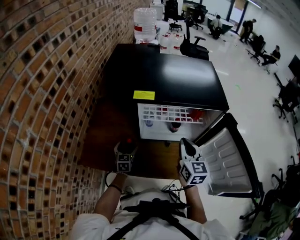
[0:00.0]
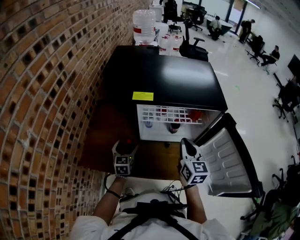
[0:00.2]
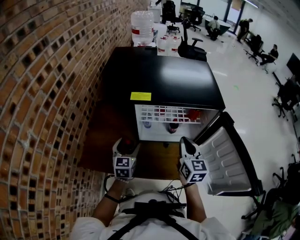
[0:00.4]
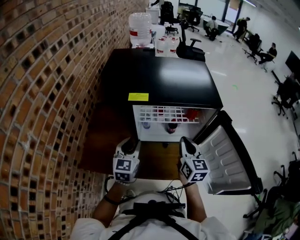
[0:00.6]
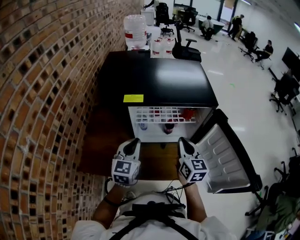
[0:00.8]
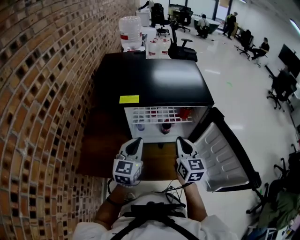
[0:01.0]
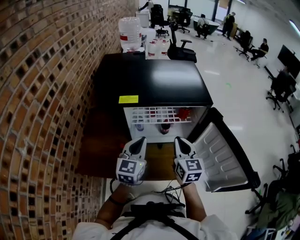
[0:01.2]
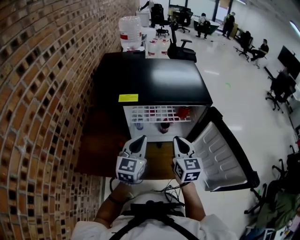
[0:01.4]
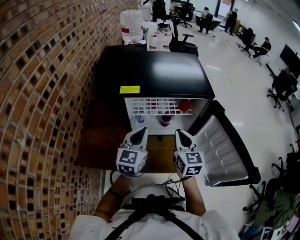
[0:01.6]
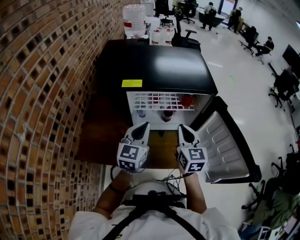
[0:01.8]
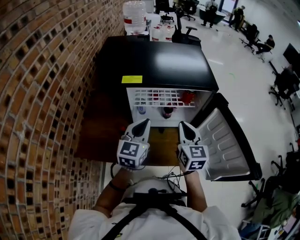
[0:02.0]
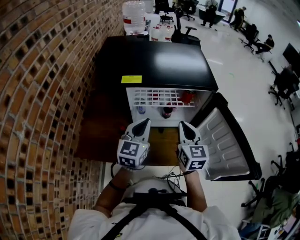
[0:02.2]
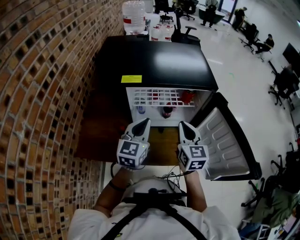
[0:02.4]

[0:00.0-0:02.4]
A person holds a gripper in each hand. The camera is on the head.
0:00.0 to 0:01.2: The left gripper travels upward and to the right by approximately 30 cm, swivels some 30 degrees, and closes up.
0:01.2 to 0:02.4: Both grippers stay put.

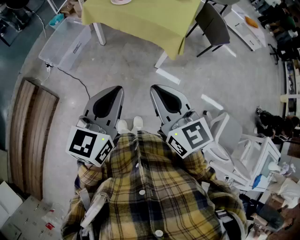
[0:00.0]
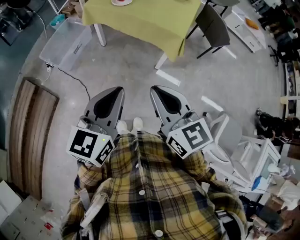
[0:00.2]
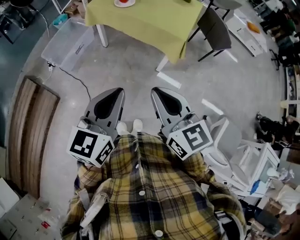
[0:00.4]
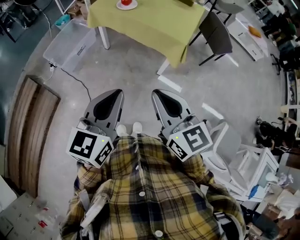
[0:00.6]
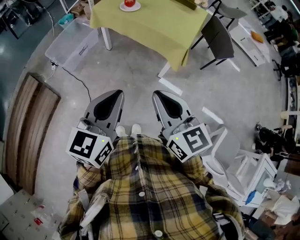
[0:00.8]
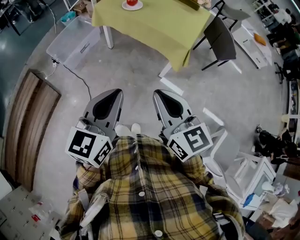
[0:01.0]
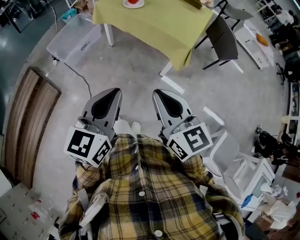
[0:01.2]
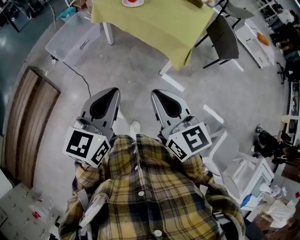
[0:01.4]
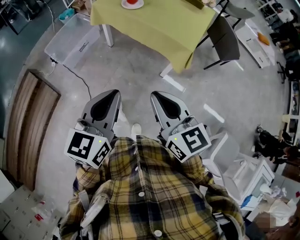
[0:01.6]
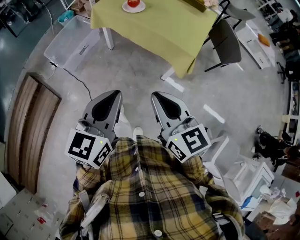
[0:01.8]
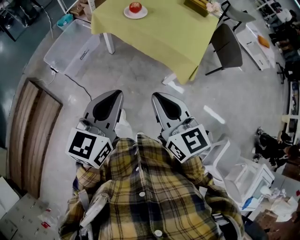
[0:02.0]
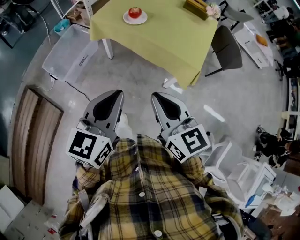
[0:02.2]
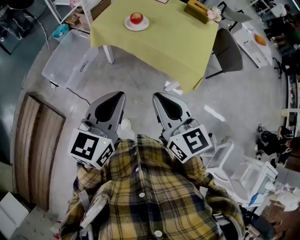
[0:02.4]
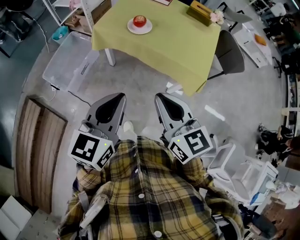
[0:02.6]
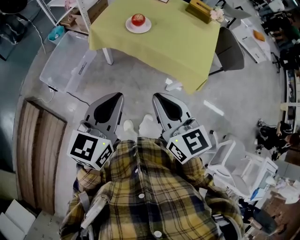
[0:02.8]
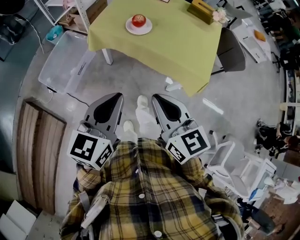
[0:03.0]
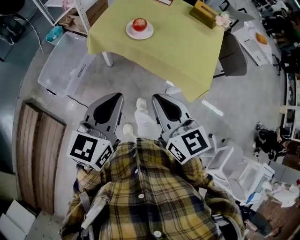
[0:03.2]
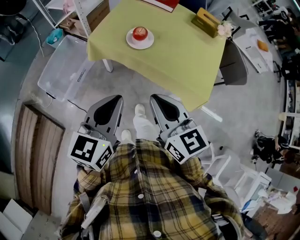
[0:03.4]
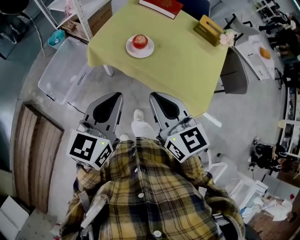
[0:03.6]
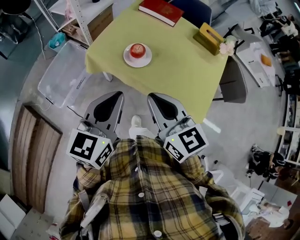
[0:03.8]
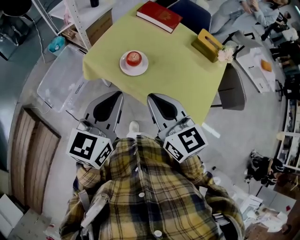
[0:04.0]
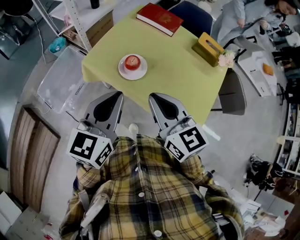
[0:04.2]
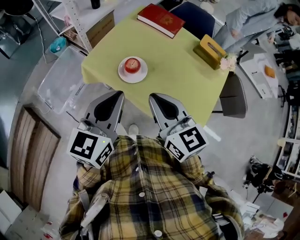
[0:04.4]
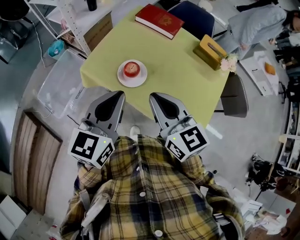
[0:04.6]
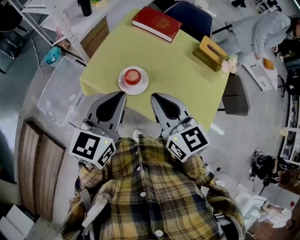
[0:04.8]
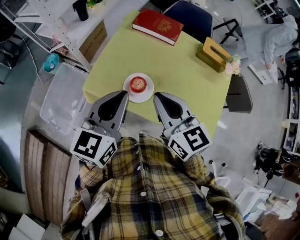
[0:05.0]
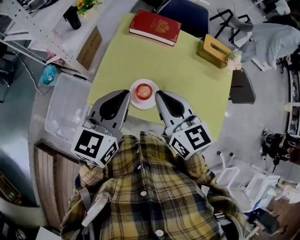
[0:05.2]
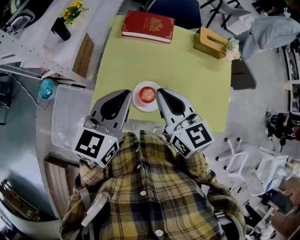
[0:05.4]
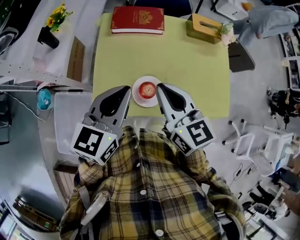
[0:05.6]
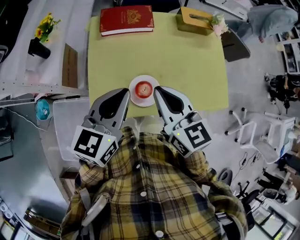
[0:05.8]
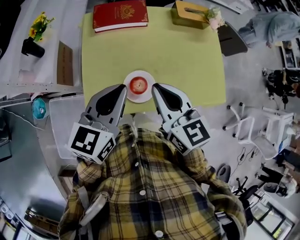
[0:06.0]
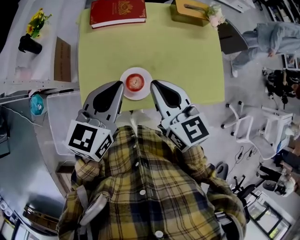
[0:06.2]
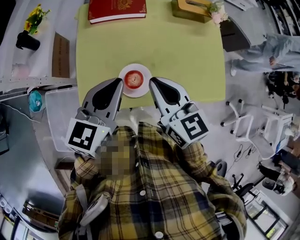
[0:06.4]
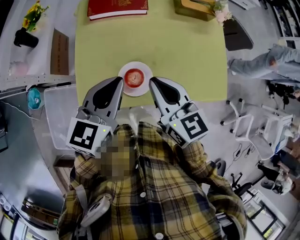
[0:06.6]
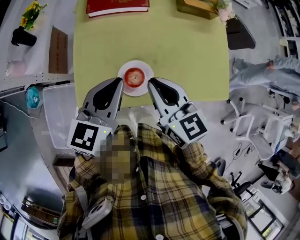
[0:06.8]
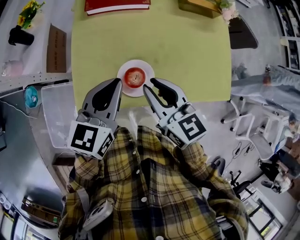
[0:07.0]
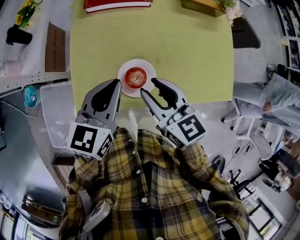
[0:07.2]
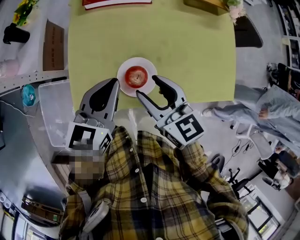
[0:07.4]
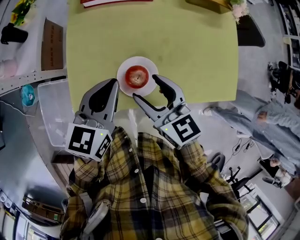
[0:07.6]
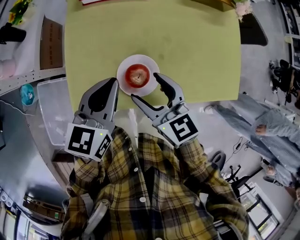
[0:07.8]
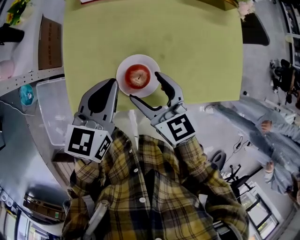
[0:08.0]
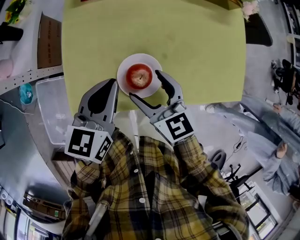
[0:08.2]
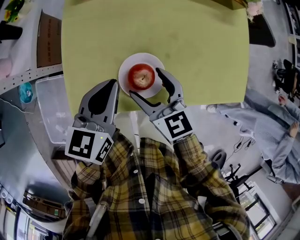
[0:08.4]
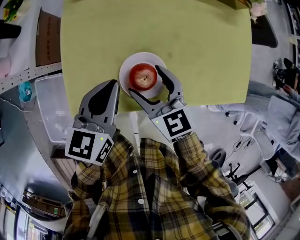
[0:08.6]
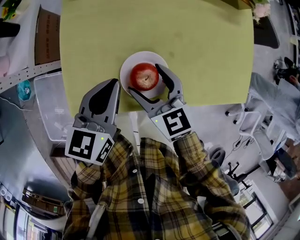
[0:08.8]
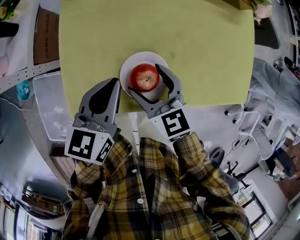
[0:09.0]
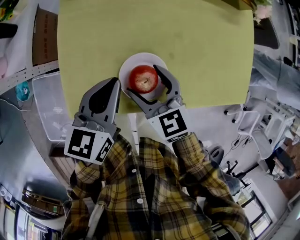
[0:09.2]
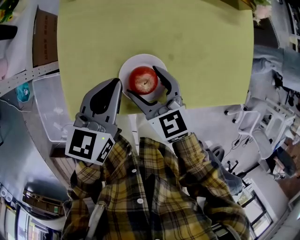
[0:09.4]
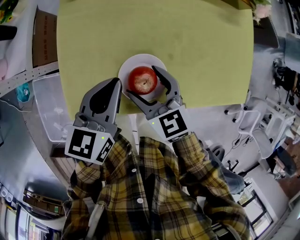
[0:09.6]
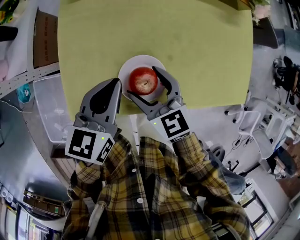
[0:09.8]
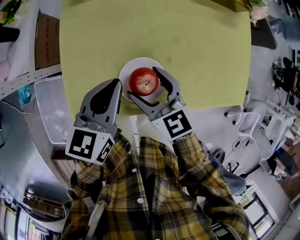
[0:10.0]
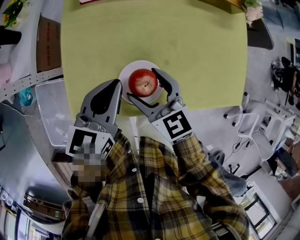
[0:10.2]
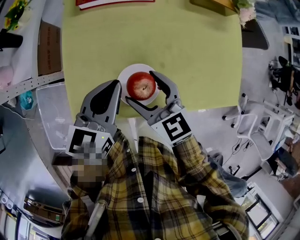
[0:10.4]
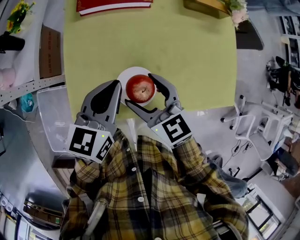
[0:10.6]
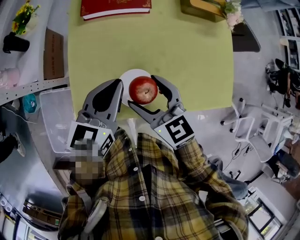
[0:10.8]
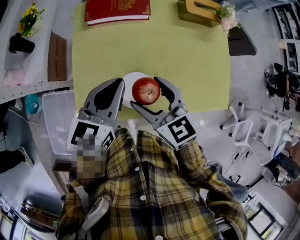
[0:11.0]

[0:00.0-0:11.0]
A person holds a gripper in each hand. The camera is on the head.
0:00.0 to 0:01.6: The two grippers go about 5 cm forward.
0:01.6 to 0:03.2: Both grippers travel together forward and to the left, approximately 30 cm.
0:03.2 to 0:04.8: Both grippers move forward, approximately 25 cm.
0:04.8 to 0:06.2: The right gripper moves roughly 10 cm, and swivels some 30 degrees. The left gripper shifts by roughly 15 cm, and rotates some 40 degrees.
0:06.2 to 0:07.8: Both grippers travel together downward, roughly 15 cm. The right gripper opens.
0:07.8 to 0:09.4: The left gripper heads downward, covering roughly 5 cm, while the right gripper heads downward, covering some 10 cm.
0:09.4 to 0:11.0: The grippers both shift upward by roughly 10 cm.

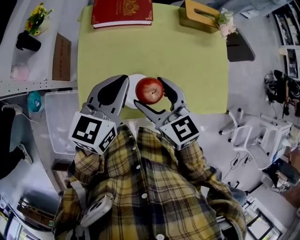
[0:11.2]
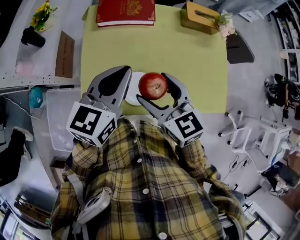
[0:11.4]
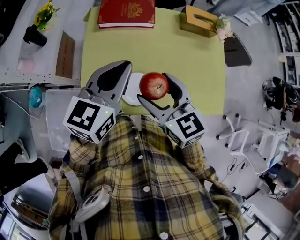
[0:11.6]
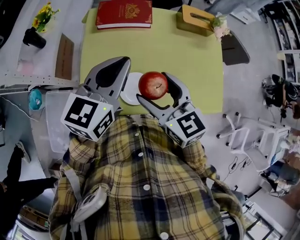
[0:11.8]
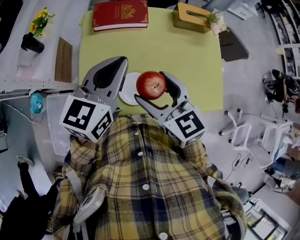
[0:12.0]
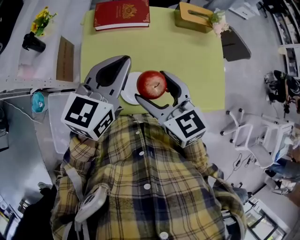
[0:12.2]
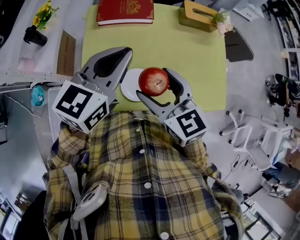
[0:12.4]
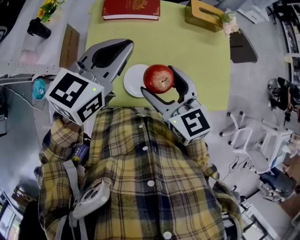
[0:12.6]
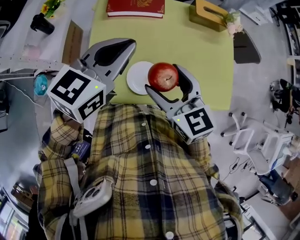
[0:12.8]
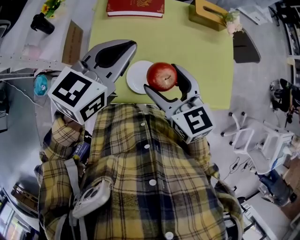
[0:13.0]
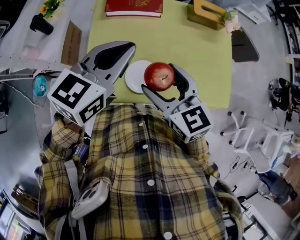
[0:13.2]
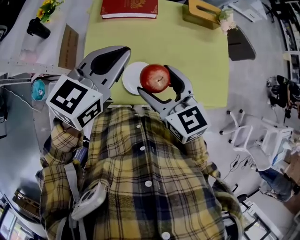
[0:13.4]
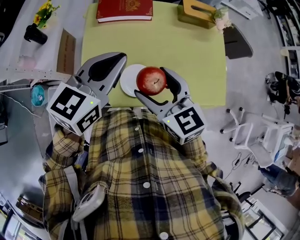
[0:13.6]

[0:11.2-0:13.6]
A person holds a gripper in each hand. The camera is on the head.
0:11.2 to 0:12.4: Both grippers move upward, about 5 cm.
0:12.4 to 0:13.6: The grippers move only a little.

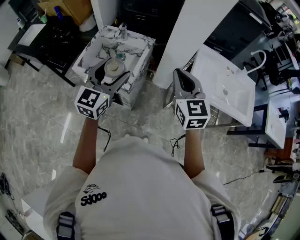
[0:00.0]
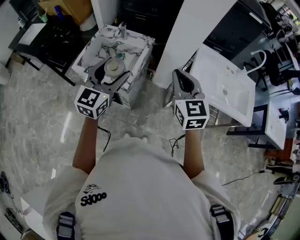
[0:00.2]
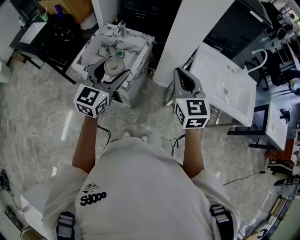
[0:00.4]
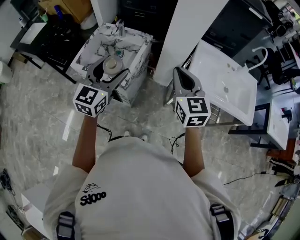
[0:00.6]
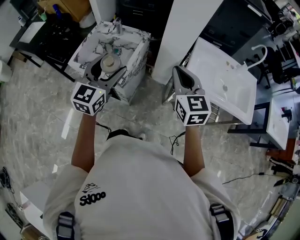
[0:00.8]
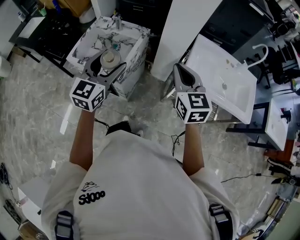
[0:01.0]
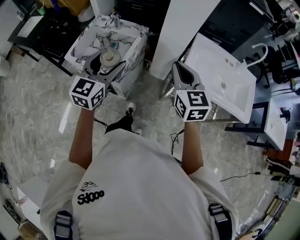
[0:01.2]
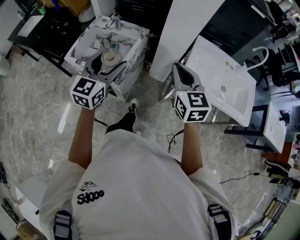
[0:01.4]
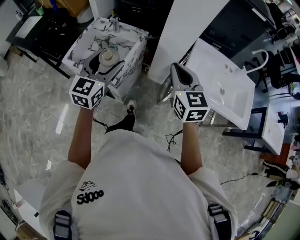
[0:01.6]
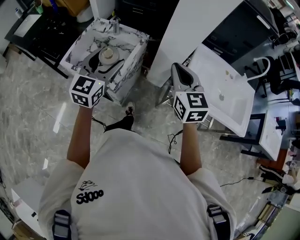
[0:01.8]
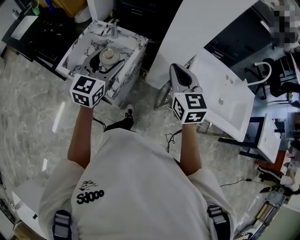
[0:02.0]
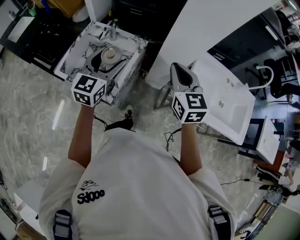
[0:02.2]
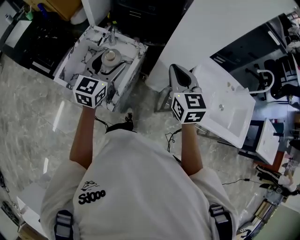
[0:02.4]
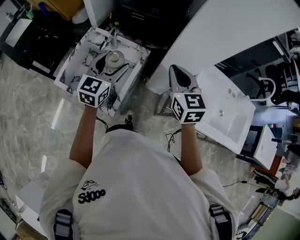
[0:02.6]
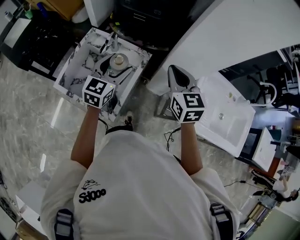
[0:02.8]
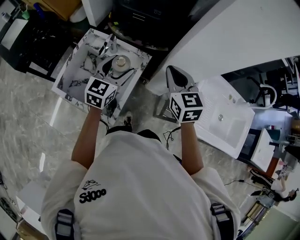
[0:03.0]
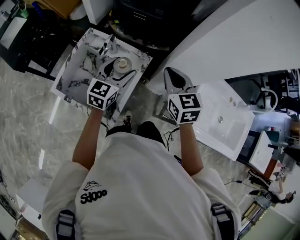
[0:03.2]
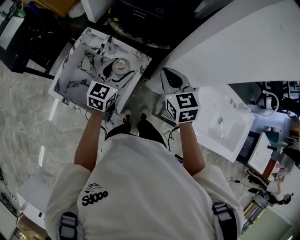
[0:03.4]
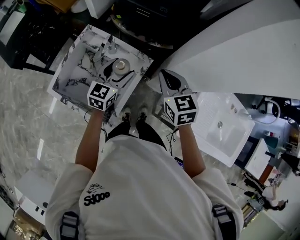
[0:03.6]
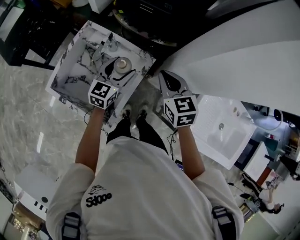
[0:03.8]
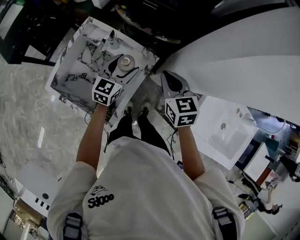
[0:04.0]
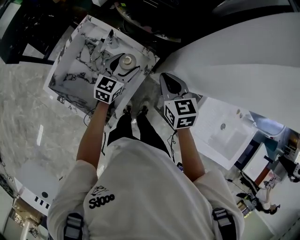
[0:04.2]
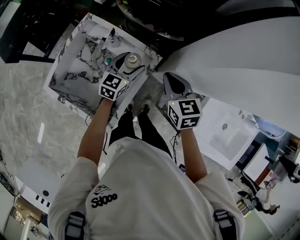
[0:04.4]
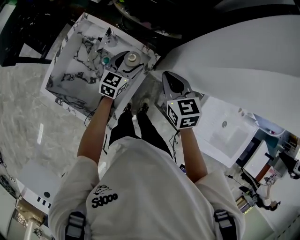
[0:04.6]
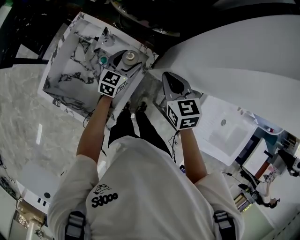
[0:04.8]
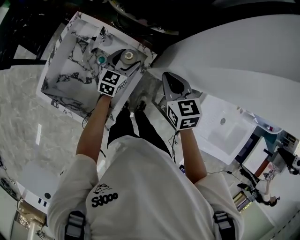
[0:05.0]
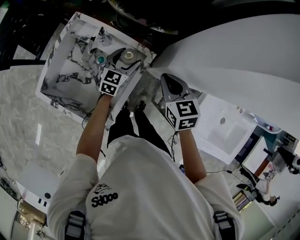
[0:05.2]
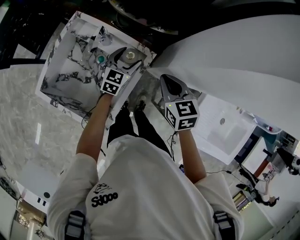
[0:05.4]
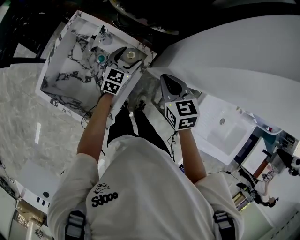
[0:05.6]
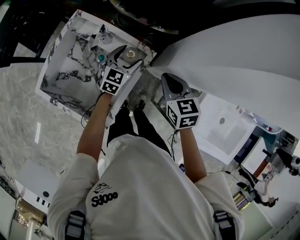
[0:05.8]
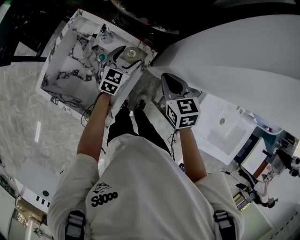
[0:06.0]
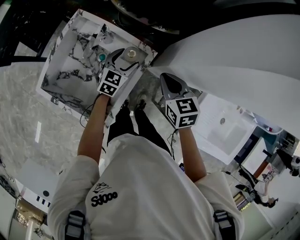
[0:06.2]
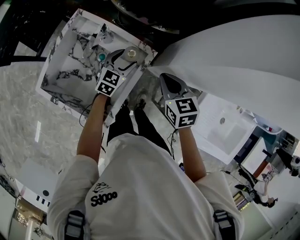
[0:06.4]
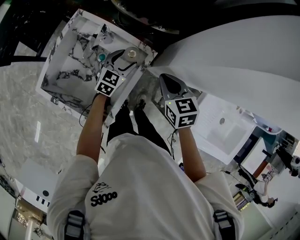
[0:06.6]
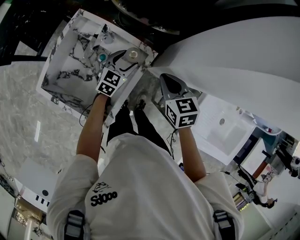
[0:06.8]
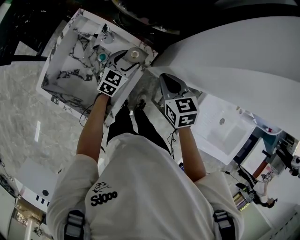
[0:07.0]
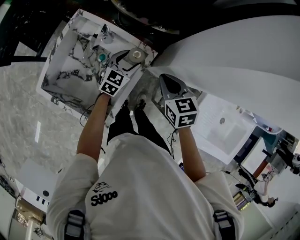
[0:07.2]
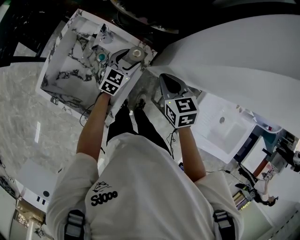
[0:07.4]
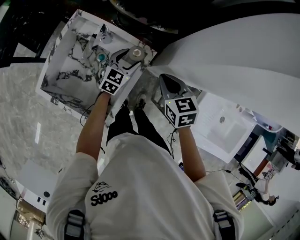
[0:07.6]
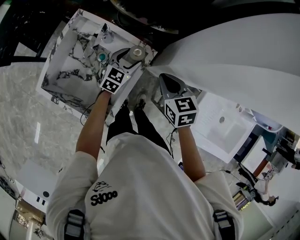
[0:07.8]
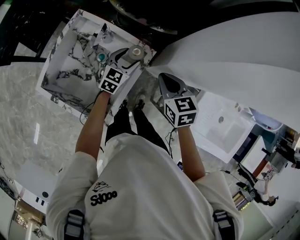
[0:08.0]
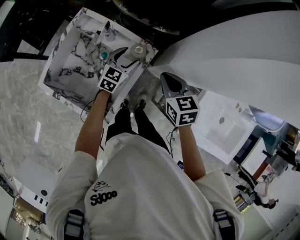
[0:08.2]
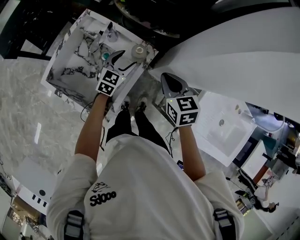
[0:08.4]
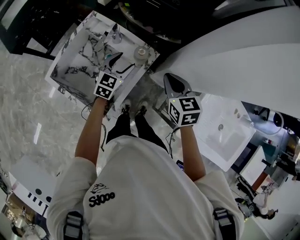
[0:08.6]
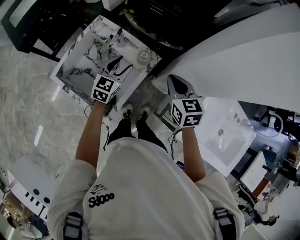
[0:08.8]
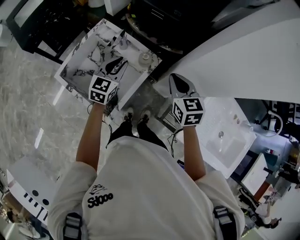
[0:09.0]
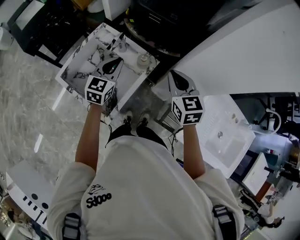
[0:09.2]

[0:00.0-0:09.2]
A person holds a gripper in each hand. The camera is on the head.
0:00.0 to 0:01.6: The right gripper is displaced to the right by about 5 cm. The left gripper ends up roughly 5 cm from where it was.
0:01.6 to 0:03.0: The left gripper shifts about 25 cm forward and downward. Meanwhile the right gripper heads forward, covering about 25 cm.
0:03.0 to 0:04.6: The grippers both shift downward and forward by roughly 20 cm.
0:04.6 to 0:07.6: The grippers make only small movements.
0:07.6 to 0:09.2: The right gripper travels upward by about 15 cm, and swivels roughly 20 degrees; the left gripper shifts roughly 20 cm upward and to the left, turns by about 20 degrees, and closes up.
